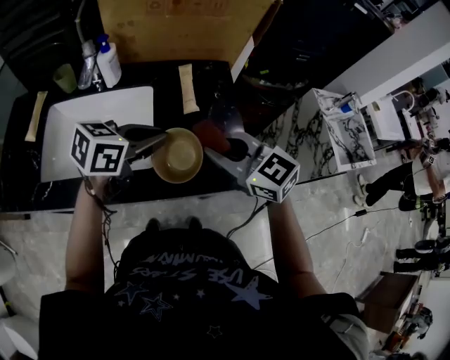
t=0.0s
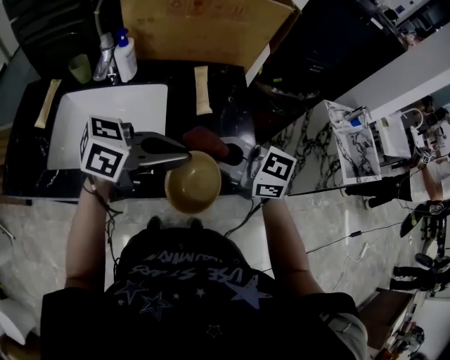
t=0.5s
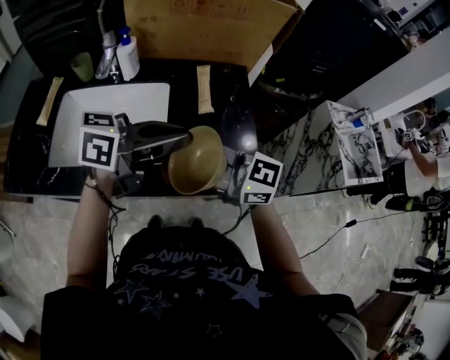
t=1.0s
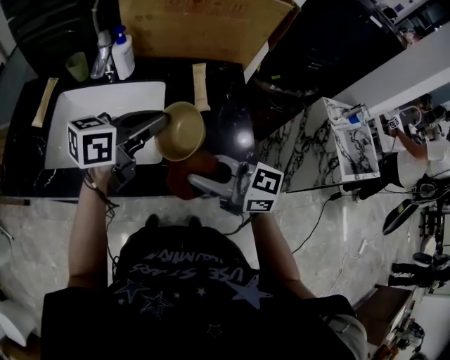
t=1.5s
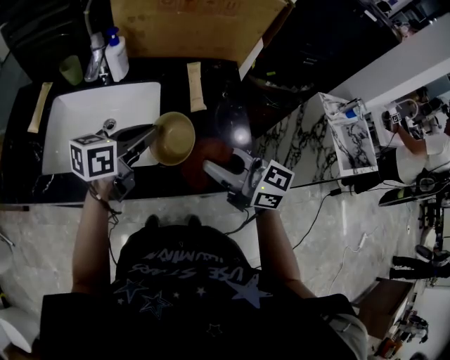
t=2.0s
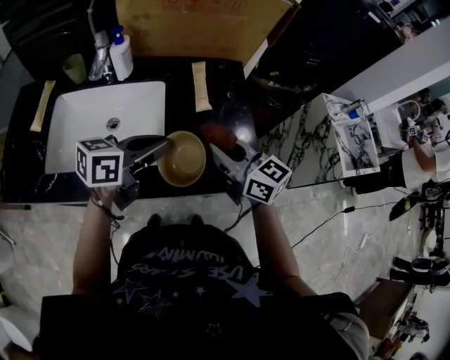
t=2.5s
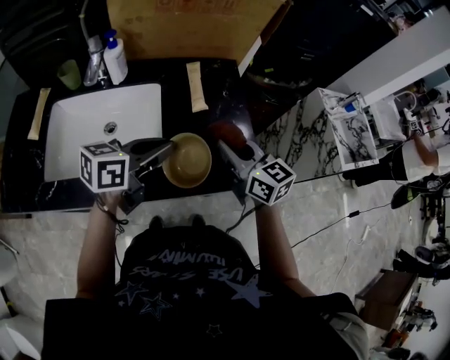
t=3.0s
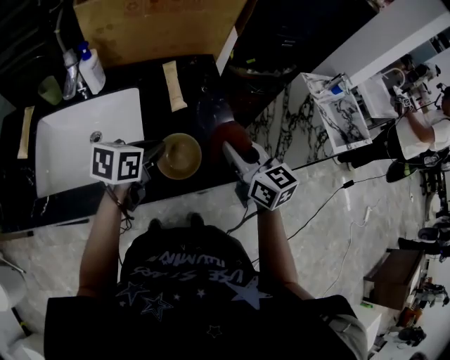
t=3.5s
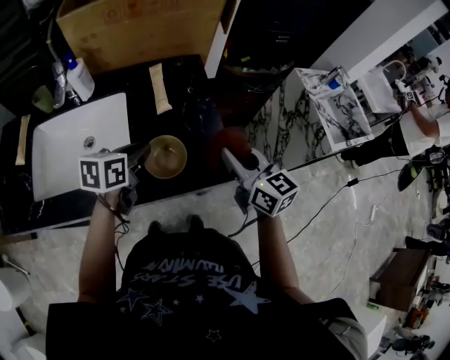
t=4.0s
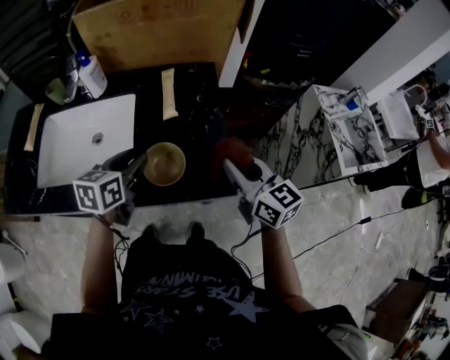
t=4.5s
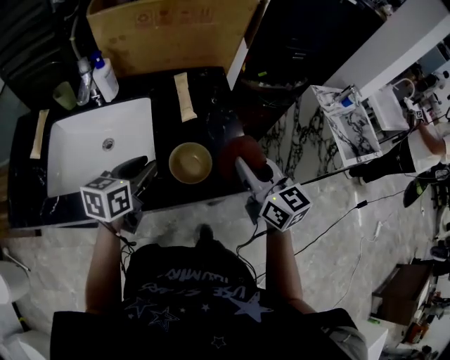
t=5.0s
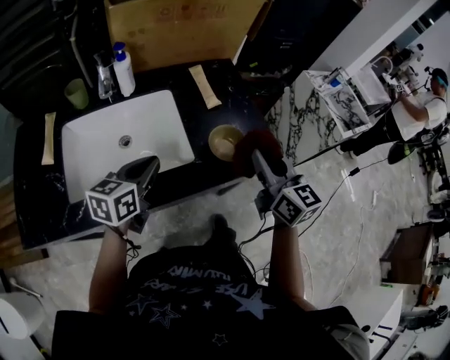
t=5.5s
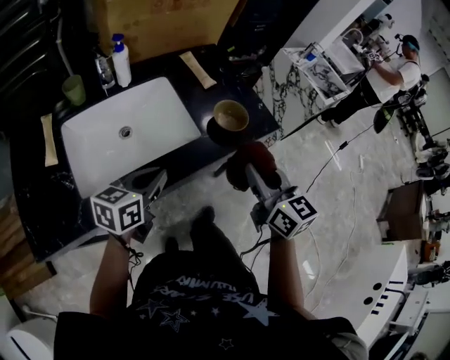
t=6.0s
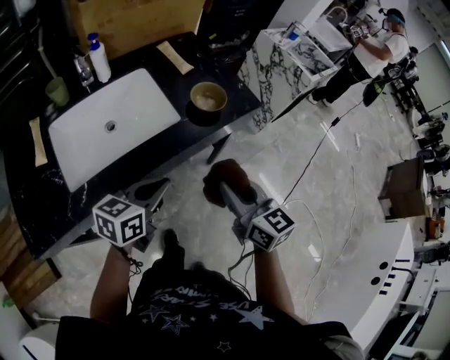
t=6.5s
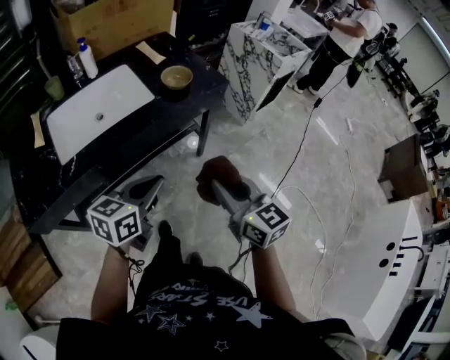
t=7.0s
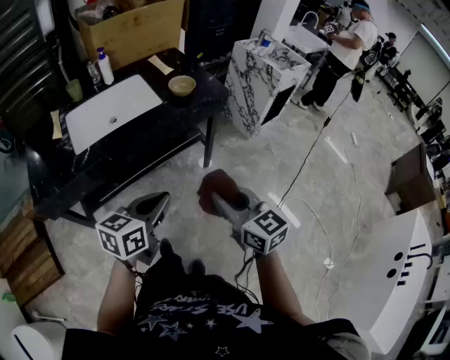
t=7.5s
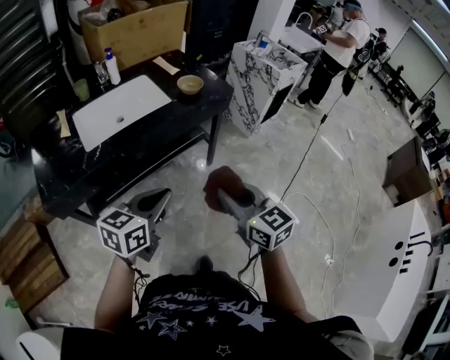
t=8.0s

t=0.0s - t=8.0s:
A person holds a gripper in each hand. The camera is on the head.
t=0.0s - t=2.0s: The left gripper moves some 5 cm upward and comes back, and changes its angle by roughly 20 degrees, while the right gripper changes its angle by roughly 30 degrees.
t=2.0s - t=4.0s: The right gripper moves to the right, roughly 15 cm, and swivels approximately 40 degrees, while the left gripper goes some 10 cm to the right and downward.
t=4.0s - t=6.0s: The right gripper changes place by about 30 cm, and turns by approximately 20 degrees; the left gripper moves roughly 25 cm, turns by approximately 20 degrees, and opens, then closes once more.
t=6.0s - t=8.0s: The two grippers go roughly 35 cm backward.

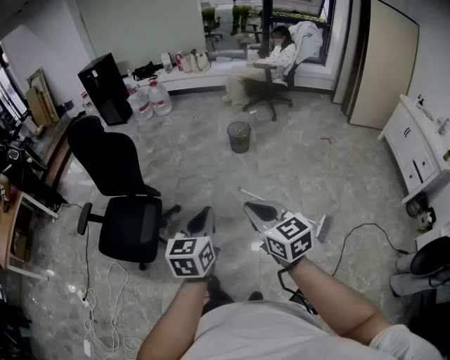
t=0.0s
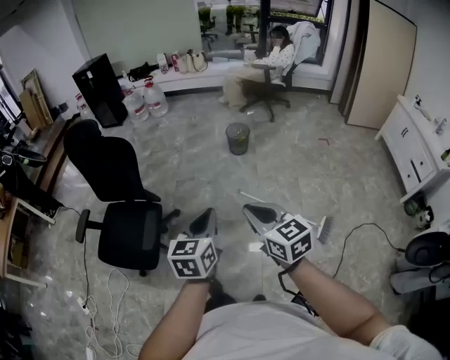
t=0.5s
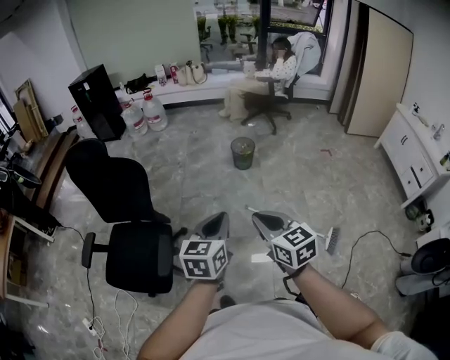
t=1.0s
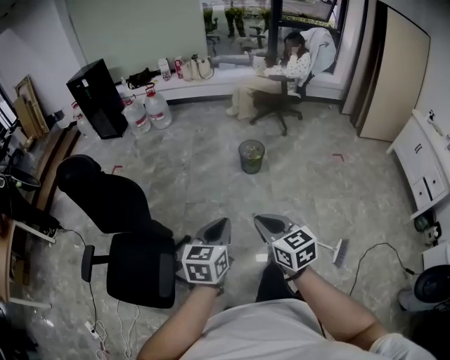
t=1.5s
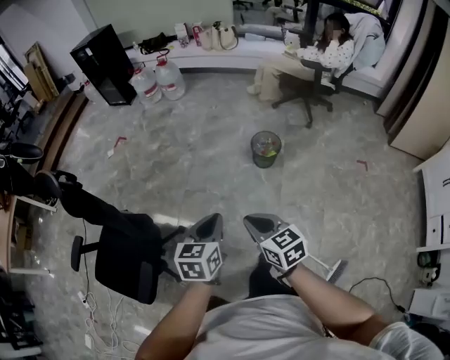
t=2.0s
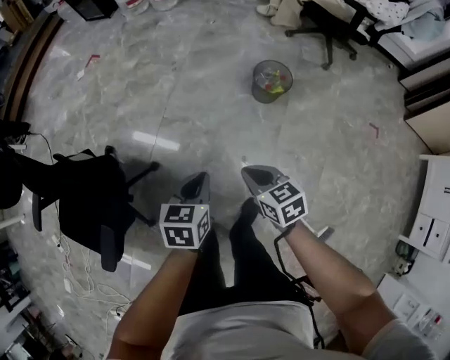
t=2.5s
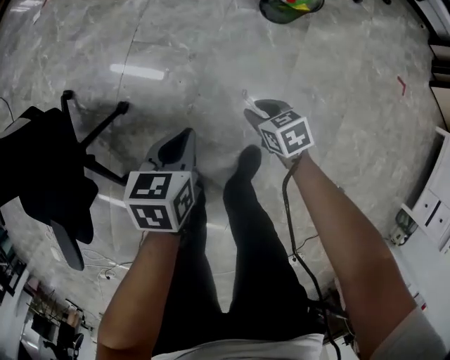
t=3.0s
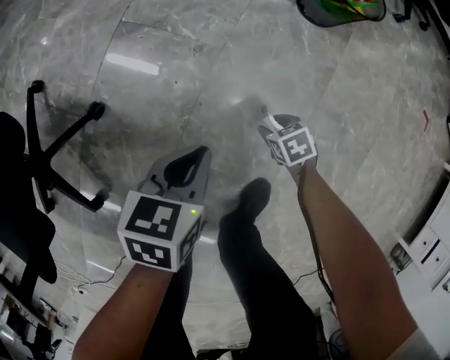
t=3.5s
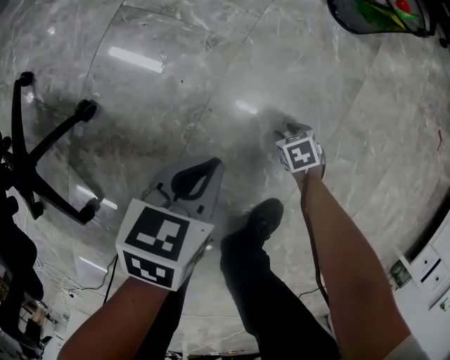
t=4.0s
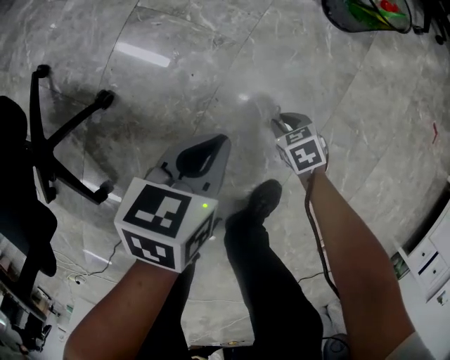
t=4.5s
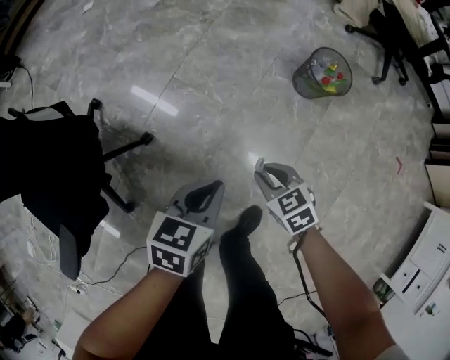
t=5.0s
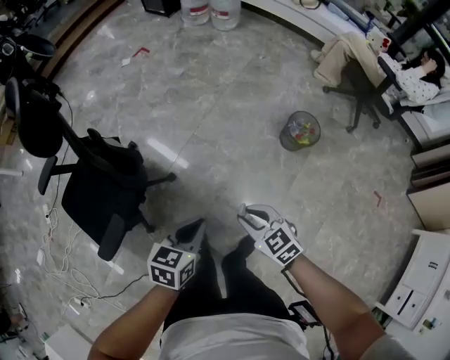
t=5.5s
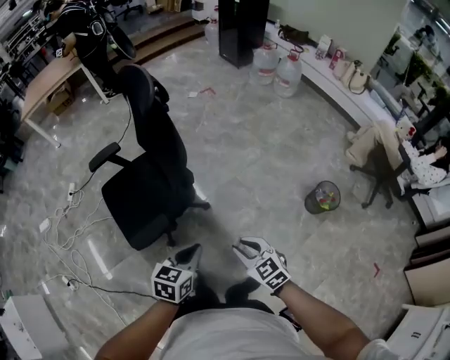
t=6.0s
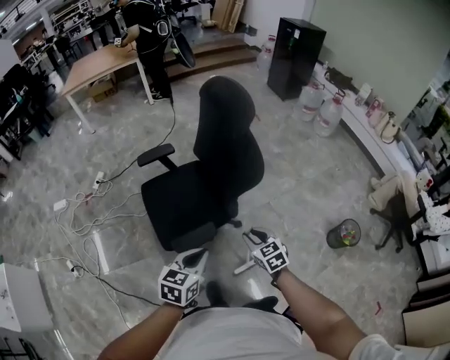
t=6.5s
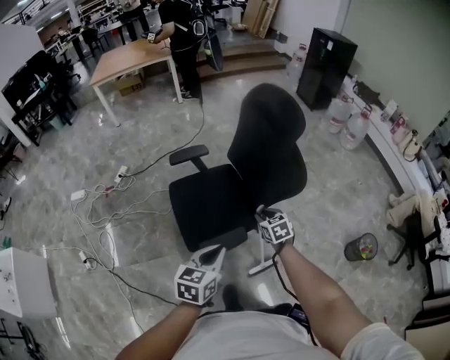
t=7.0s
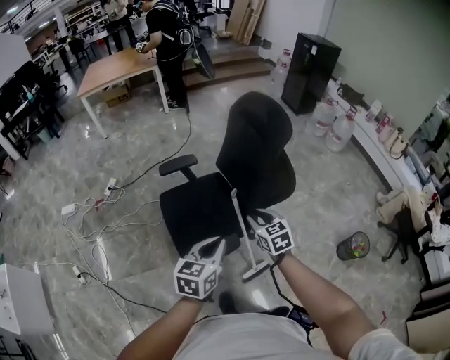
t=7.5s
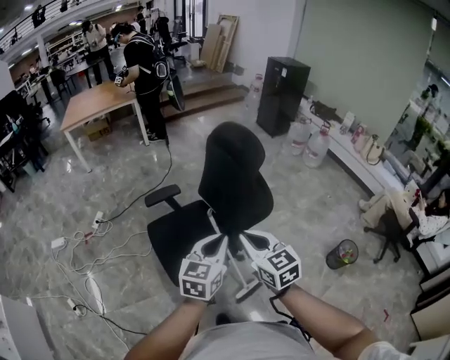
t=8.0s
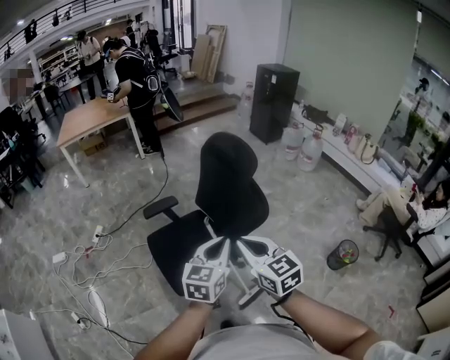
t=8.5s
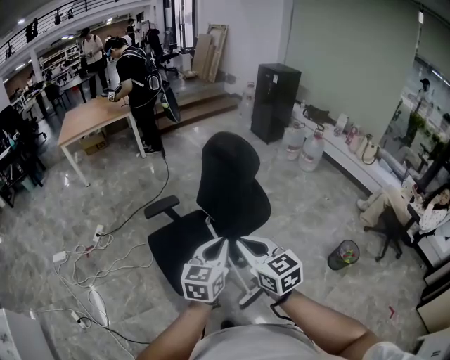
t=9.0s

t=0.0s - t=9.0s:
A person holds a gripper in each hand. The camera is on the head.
t=0.0s - t=2.0s: The pair of grippers is taken forward, some 50 cm.
t=2.0s - t=4.5s: The grippers both shift downward by some 80 cm. The right gripper angles its fingers downward, by some 40 degrees, and opens and closes again. The left gripper changes its angle by roughly 20 degrees.
t=4.5s - t=7.0s: The pair of grippers is taken approximately 60 cm. The two grippers go roughly 70 cm upward. The left gripper swivels approximately 50 degrees, while the right gripper rotates about 40 degrees.
t=7.0s - t=9.0s: The right gripper moves upward, approximately 30 cm, swivels approximately 30 degrees, and closes its fingers. The left gripper shifts some 20 cm upward, forward and to the right.

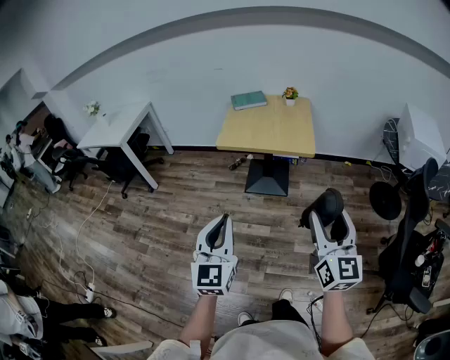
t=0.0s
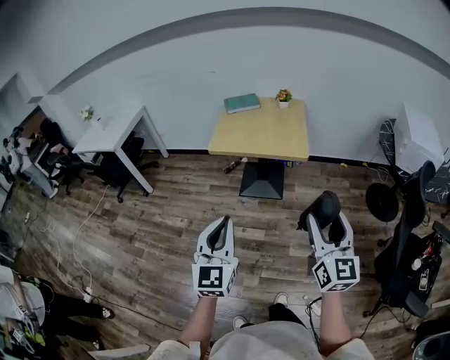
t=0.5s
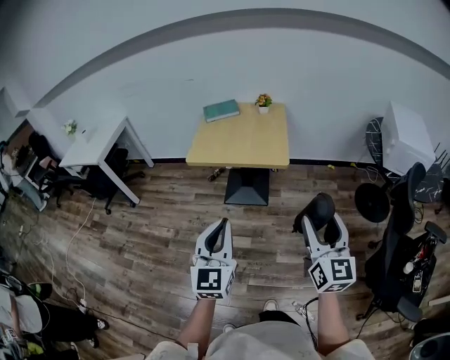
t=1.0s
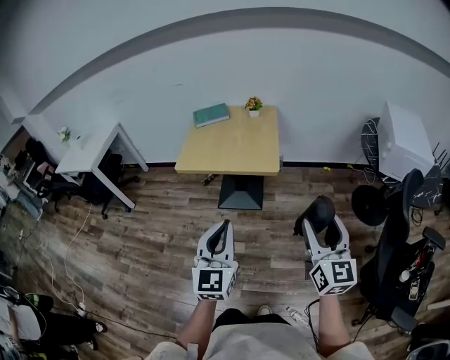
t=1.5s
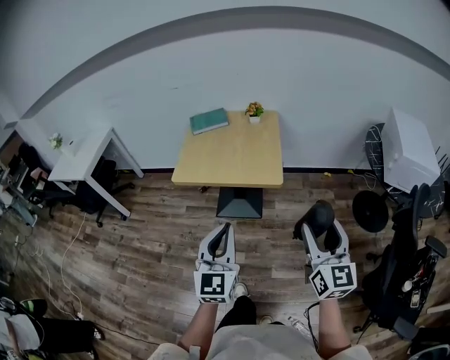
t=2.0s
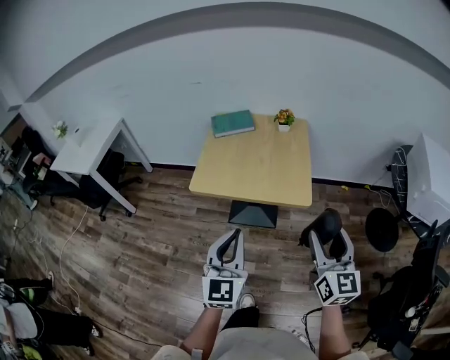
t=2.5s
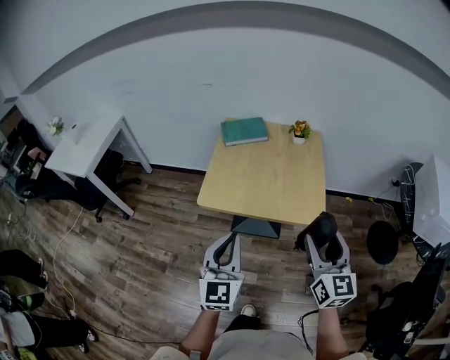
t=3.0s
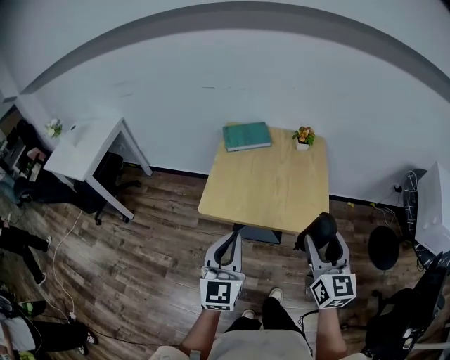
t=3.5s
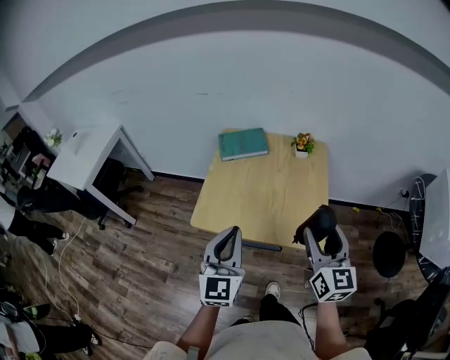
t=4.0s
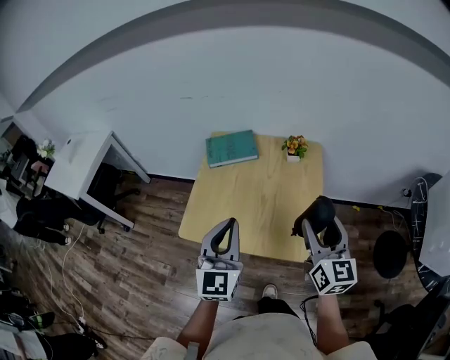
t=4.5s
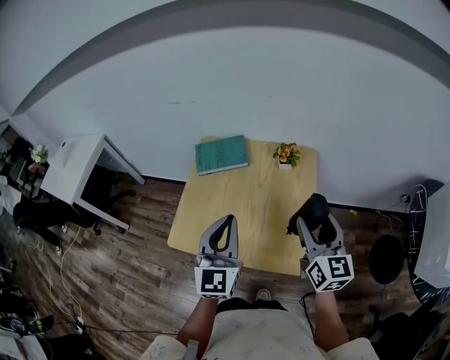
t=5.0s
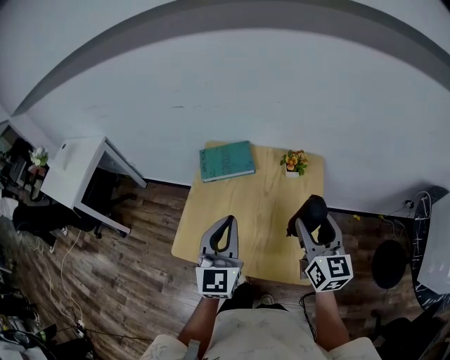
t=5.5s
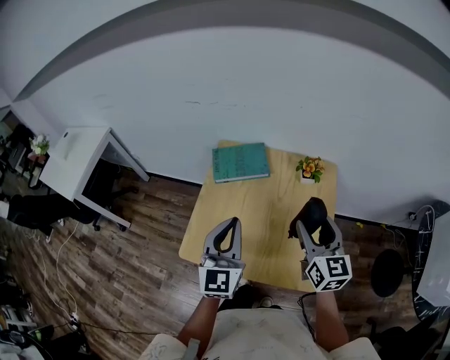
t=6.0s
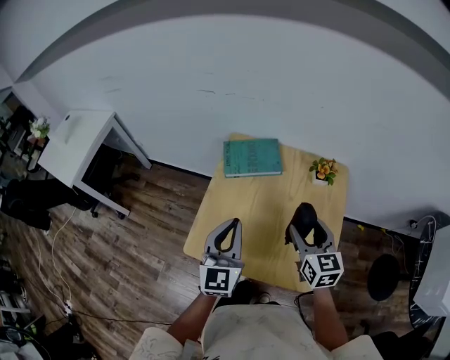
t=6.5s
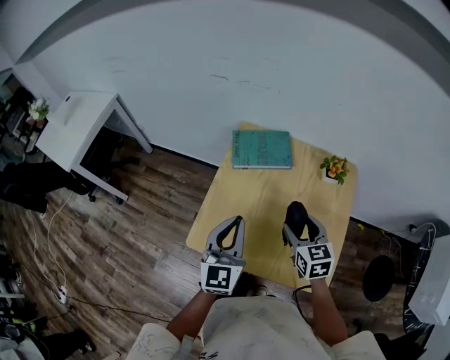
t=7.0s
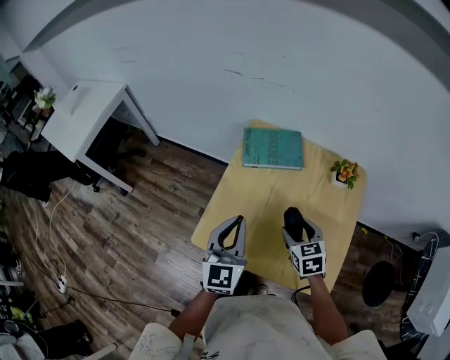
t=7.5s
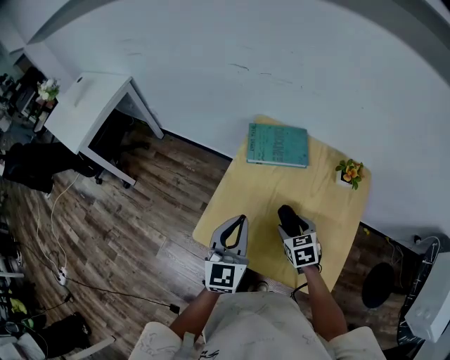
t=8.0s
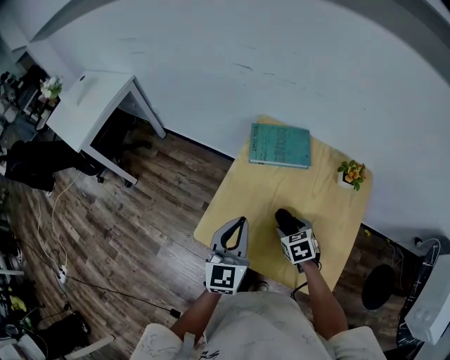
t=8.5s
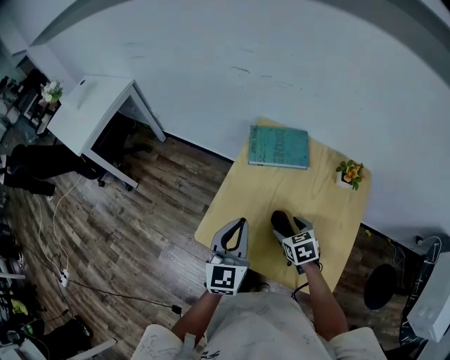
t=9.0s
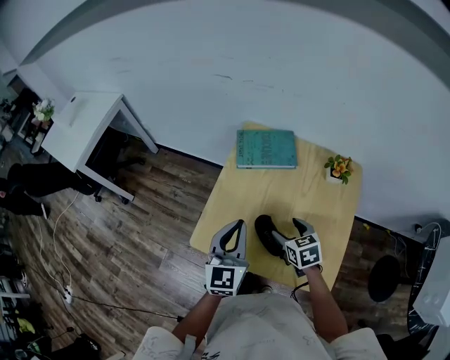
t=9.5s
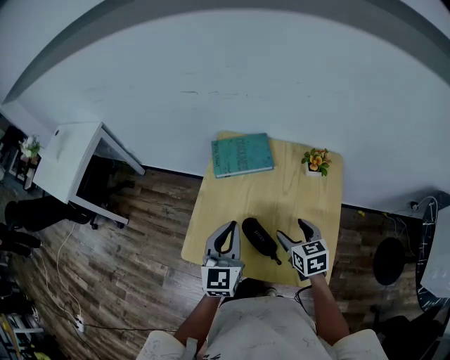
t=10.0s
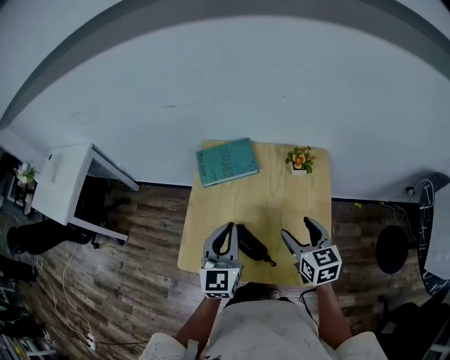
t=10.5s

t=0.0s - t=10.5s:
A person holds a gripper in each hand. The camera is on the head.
t=0.0s - t=2.0s: Both grippers move forward and to the right, about 25 cm.
t=2.0s - t=4.0s: The grippers both shift forward and to the left by roughly 40 cm.
t=4.0s - t=6.5s: Both grippers move forward, about 25 cm. The right gripper changes its angle by approximately 20 degrees.
t=6.5s - t=8.5s: The right gripper is displaced downward and to the left by about 20 cm, and angles its fingers downward, by roughly 40 degrees, while the left gripper goes roughly 10 cm downward and to the left.
t=8.5s - t=10.5s: The left gripper heads to the right, covering about 10 cm. Meanwhile the right gripper travels upward and to the right by roughly 20 cm, and angles its fingers upward, by roughly 30 degrees.
